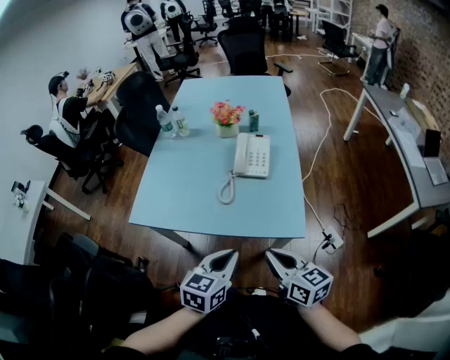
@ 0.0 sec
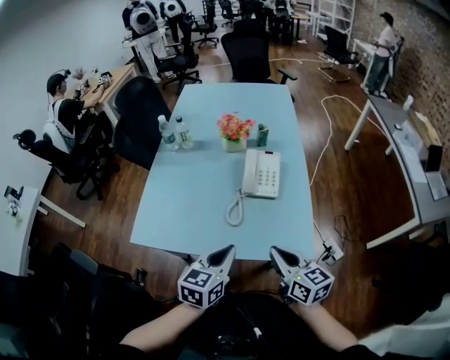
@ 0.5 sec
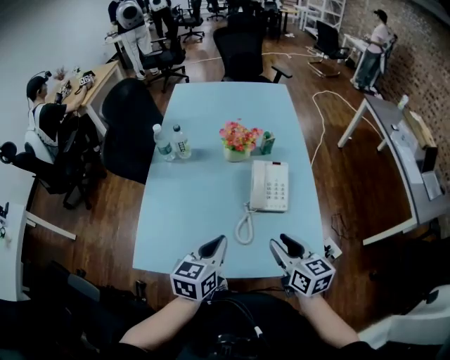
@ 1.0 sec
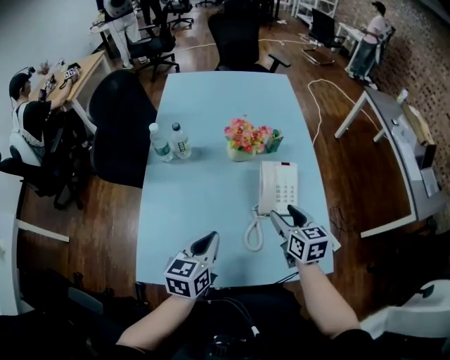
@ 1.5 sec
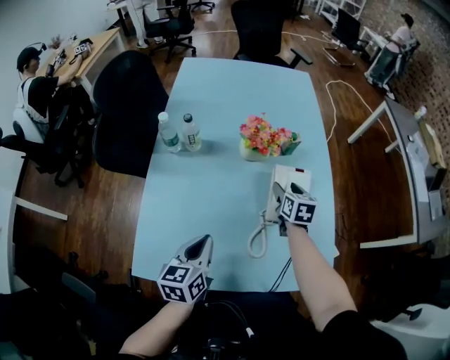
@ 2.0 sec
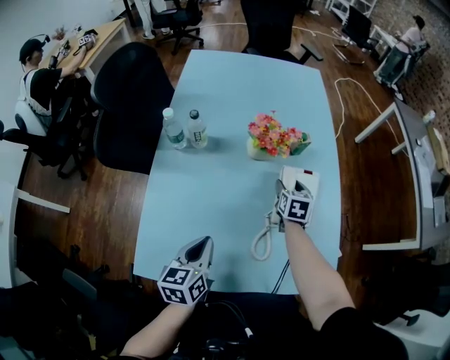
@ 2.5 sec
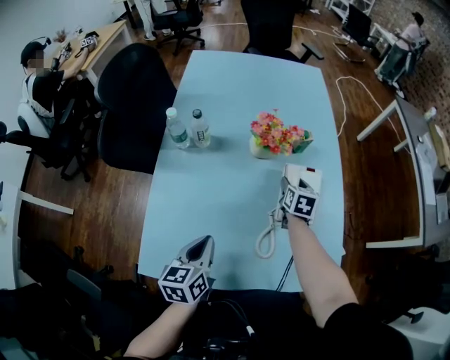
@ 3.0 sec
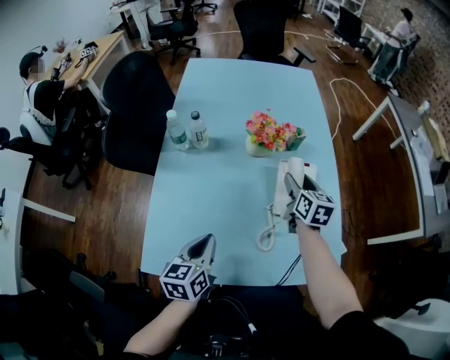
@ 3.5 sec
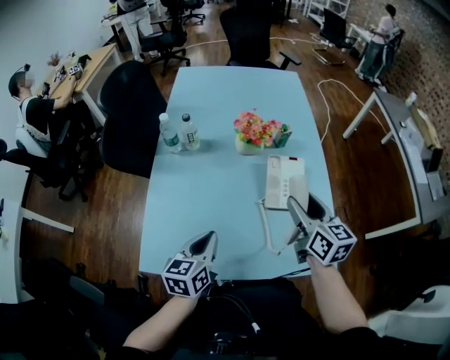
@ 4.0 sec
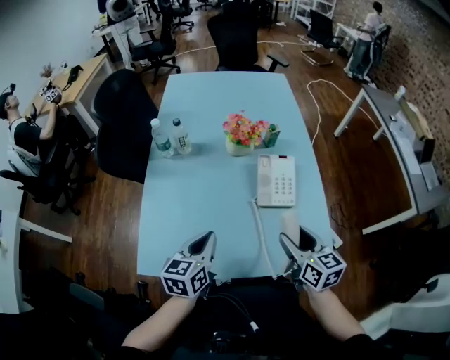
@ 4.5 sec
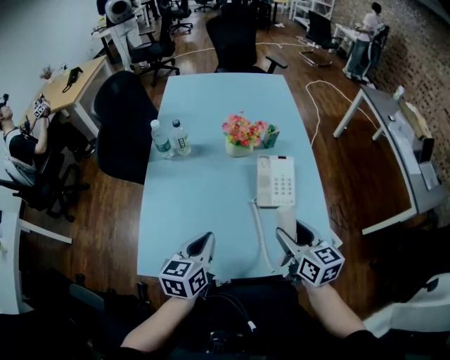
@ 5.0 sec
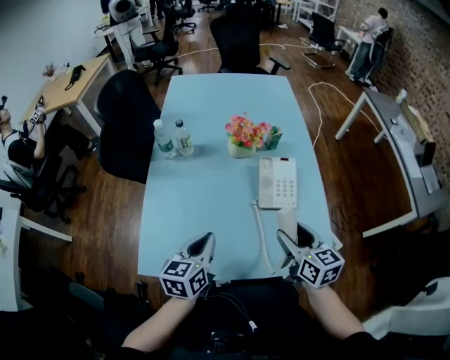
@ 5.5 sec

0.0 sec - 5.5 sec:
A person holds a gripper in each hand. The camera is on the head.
0.0 sec - 2.0 sec: The right gripper travels forward by some 50 cm, swivels approximately 40 degrees, and opens up. The left gripper moves forward and to the left, approximately 40 cm.
2.0 sec - 3.5 sec: The right gripper is displaced upward by roughly 5 cm.
3.5 sec - 5.5 sec: The right gripper shifts some 20 cm backward.

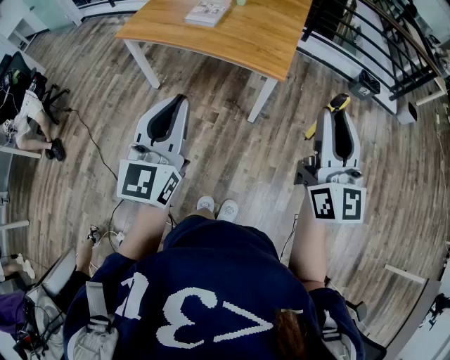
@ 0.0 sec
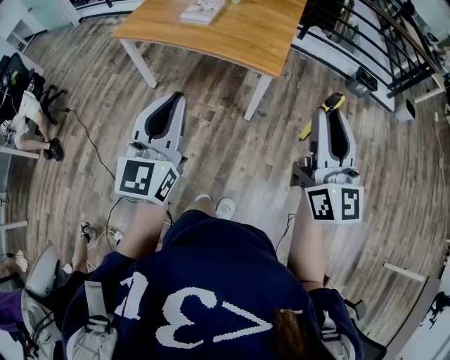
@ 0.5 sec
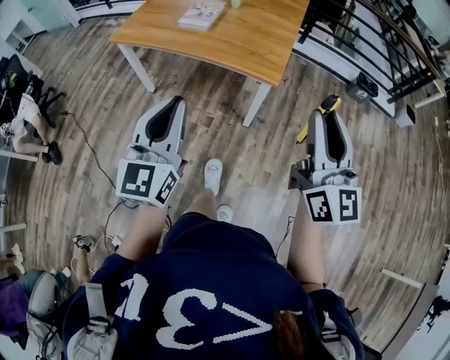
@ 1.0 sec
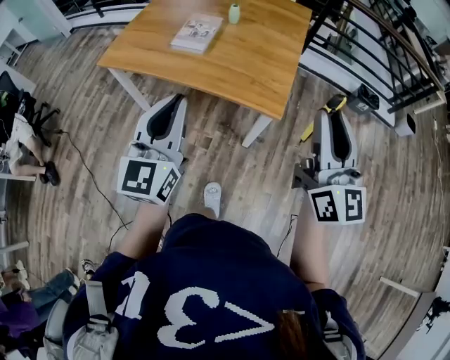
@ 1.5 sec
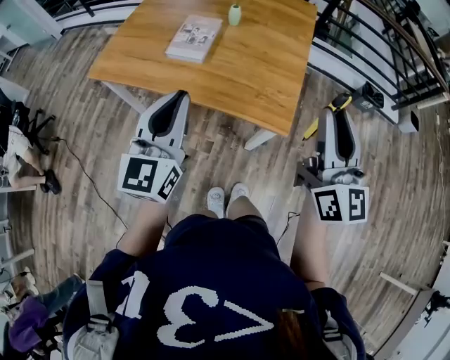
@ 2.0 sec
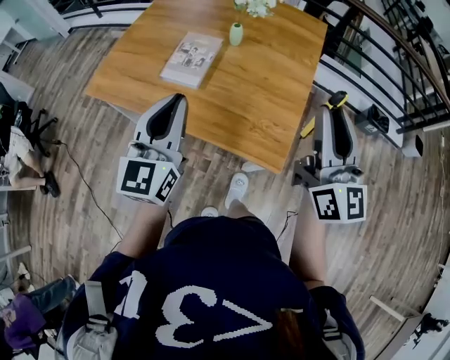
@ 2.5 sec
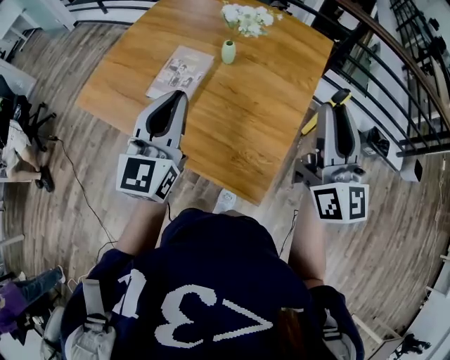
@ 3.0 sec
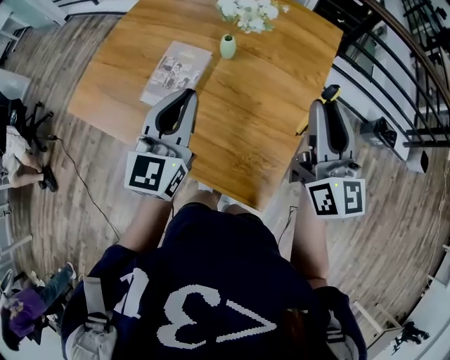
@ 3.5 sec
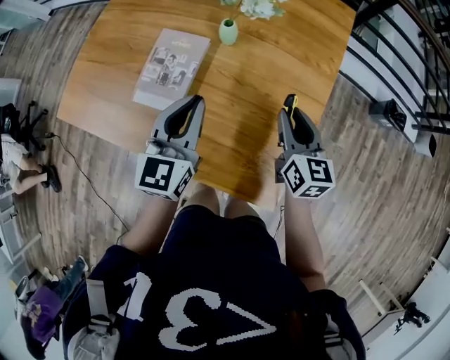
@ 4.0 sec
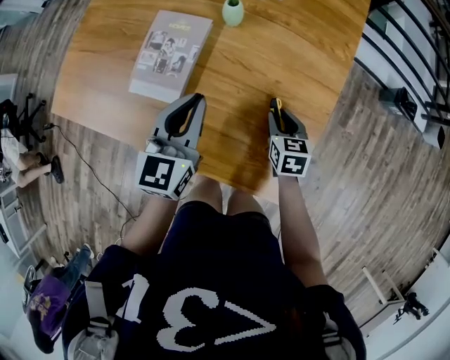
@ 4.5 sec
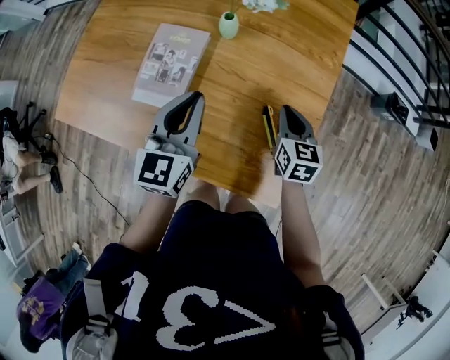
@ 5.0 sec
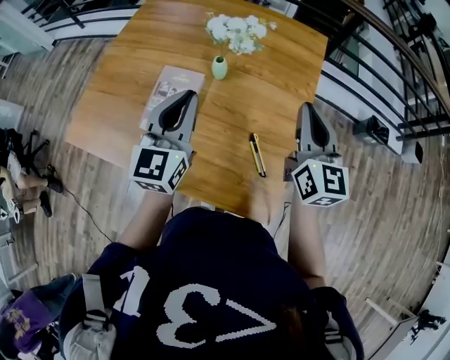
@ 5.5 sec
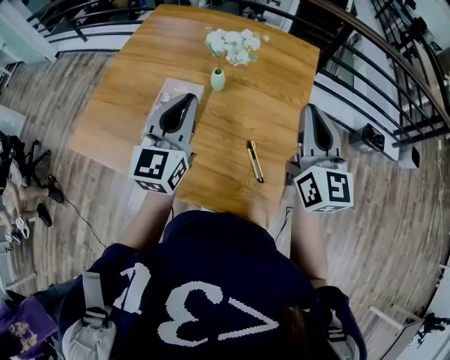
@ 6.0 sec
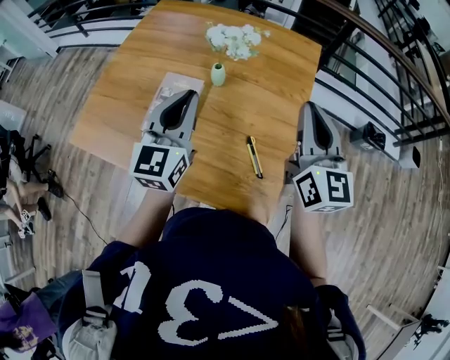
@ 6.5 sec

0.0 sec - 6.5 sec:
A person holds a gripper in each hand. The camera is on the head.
0.0 sec - 2.0 sec: Both grippers move forward, about 30 cm.
2.0 sec - 4.5 sec: The left gripper travels forward and downward by about 40 cm, and turns by about 20 degrees. Meanwhile the right gripper is displaced downward and forward by some 50 cm, and tips its fingers downward by about 60 degrees.
4.5 sec - 6.5 sec: The left gripper is displaced upward by about 15 cm. Meanwhile the right gripper moves upward, roughly 40 cm, angles its fingers upward, by about 50 degrees, and closes its fingers.

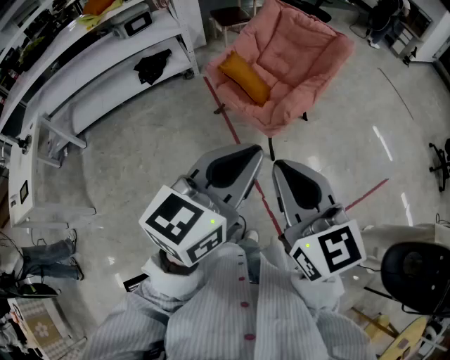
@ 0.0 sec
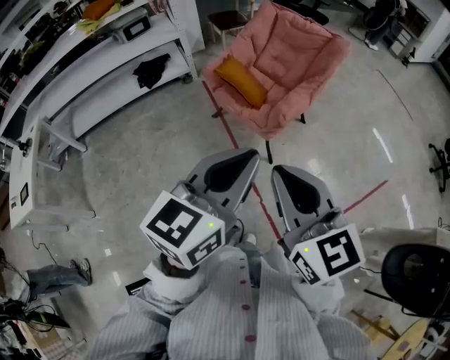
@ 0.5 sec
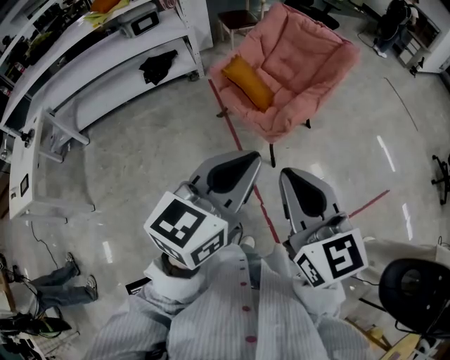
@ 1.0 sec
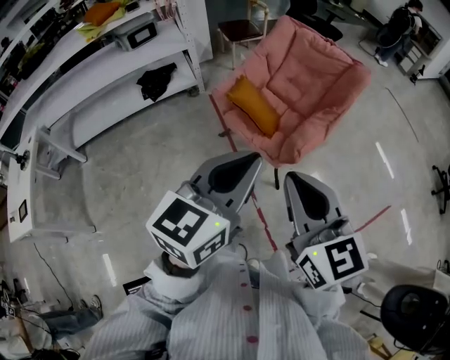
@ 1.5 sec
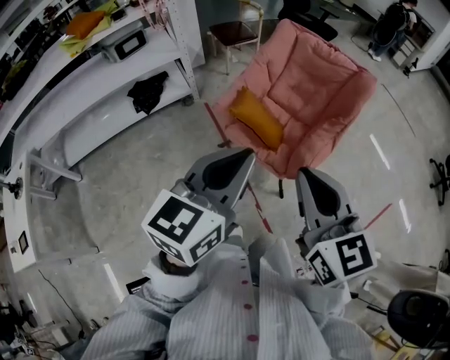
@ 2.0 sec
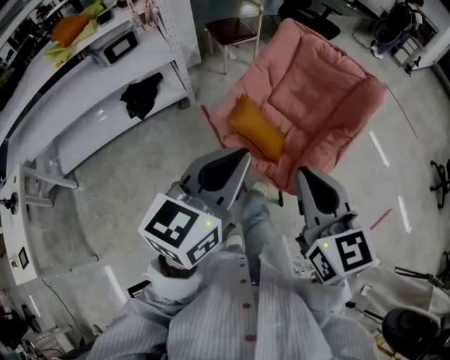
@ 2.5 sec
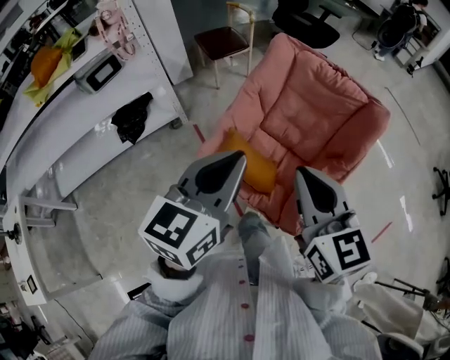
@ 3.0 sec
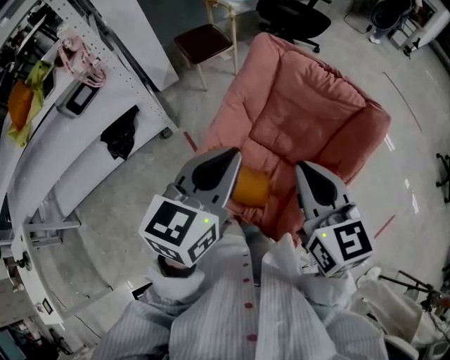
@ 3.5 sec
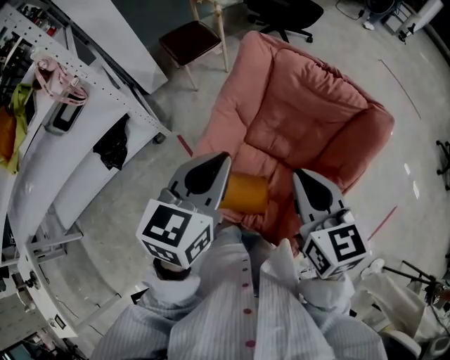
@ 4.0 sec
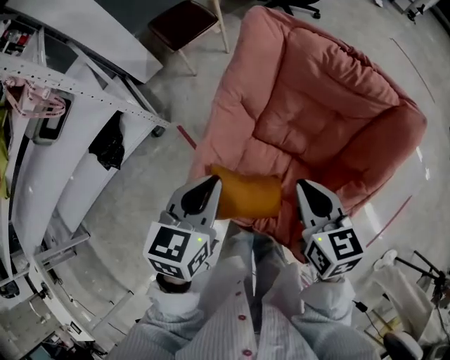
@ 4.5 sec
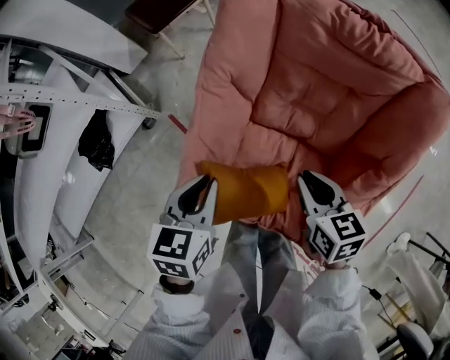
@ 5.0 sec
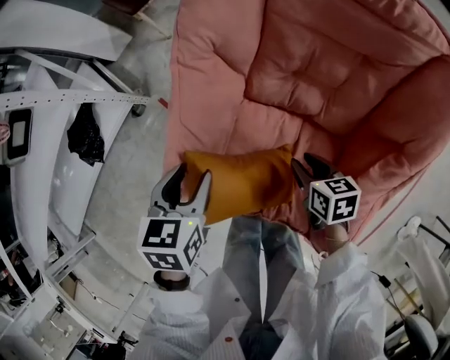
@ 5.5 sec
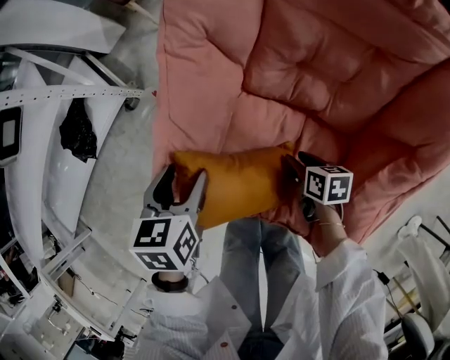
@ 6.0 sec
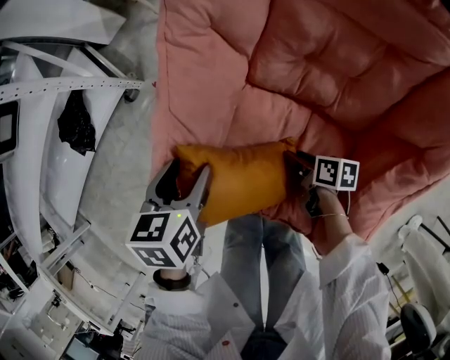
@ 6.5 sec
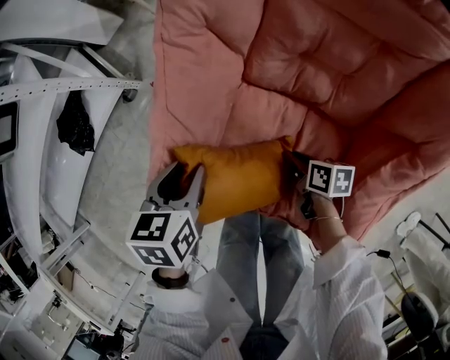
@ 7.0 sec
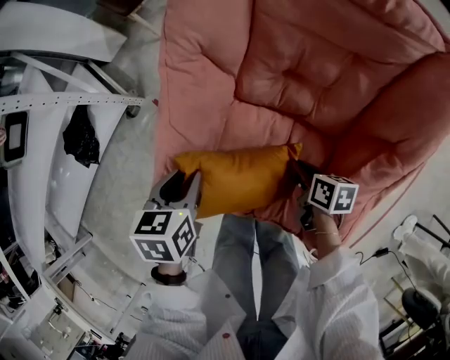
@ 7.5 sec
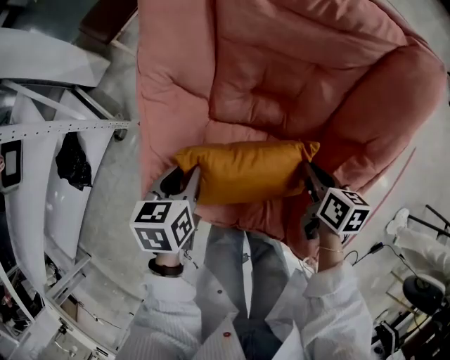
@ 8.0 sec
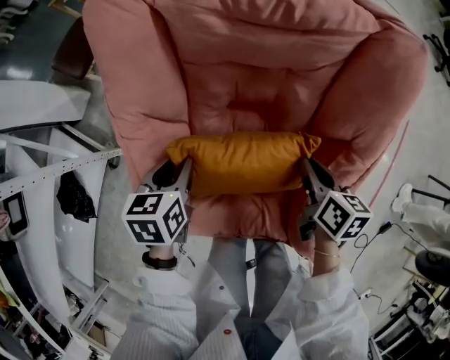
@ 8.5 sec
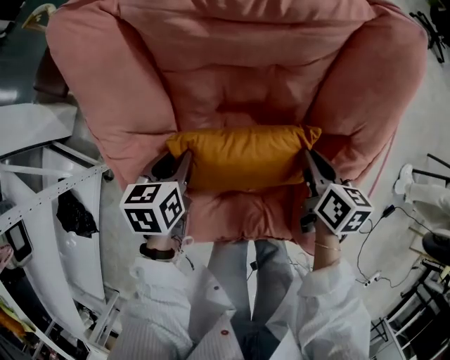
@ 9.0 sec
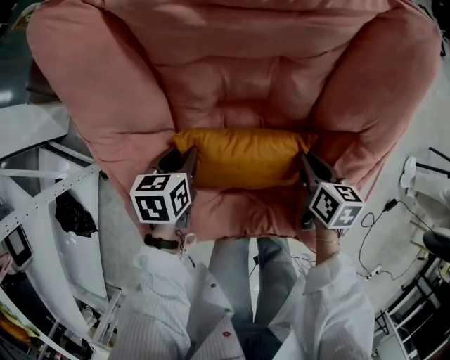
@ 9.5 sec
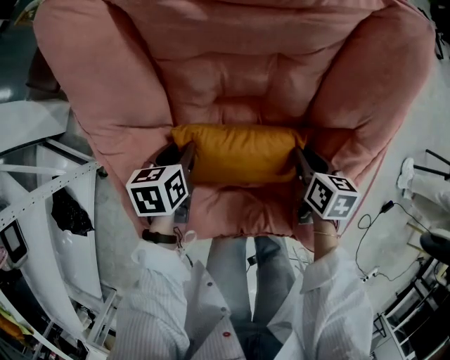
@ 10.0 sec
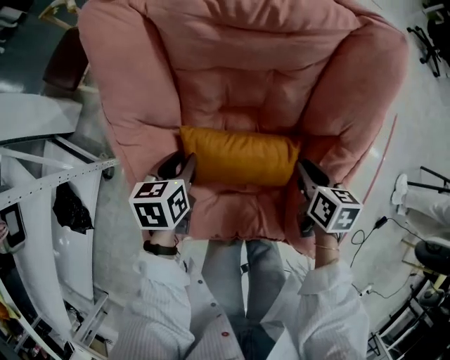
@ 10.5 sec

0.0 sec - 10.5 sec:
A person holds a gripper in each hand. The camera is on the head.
0.0 sec - 2.0 sec: The left gripper is displaced forward and to the left by some 30 cm, while the right gripper shifts roughly 25 cm forward.
2.0 sec - 4.0 sec: The pair of grippers is taken forward, approximately 50 cm.
4.0 sec - 6.5 sec: The two grippers go roughly 50 cm downward. The left gripper tilts its fingers some 30 degrees downward, and opens; the right gripper rolls clockwise, seen from behind, by about 50 degrees, and opens up.
6.5 sec - 8.5 sec: The right gripper goes roughly 20 cm upward, changes its angle by some 40 degrees, and closes, while the left gripper ends up about 20 cm from where it was, changes its angle by roughly 20 degrees, and closes its fingers.
8.5 sec - 10.5 sec: The right gripper travels downward and back again, roughly 10 cm each way. The left gripper travels downward and back again, some 10 cm each way.

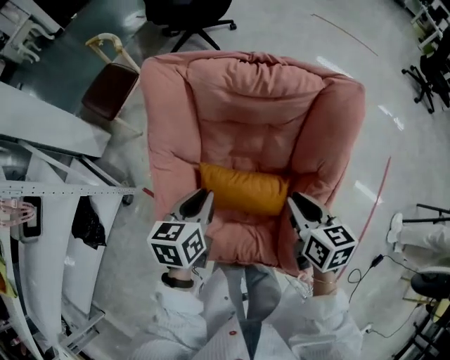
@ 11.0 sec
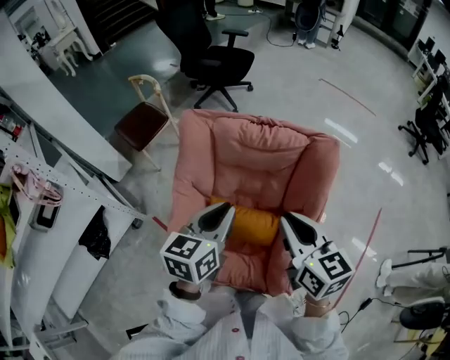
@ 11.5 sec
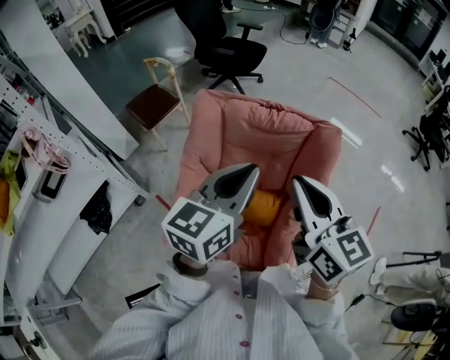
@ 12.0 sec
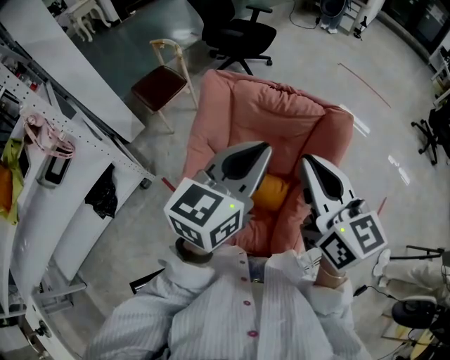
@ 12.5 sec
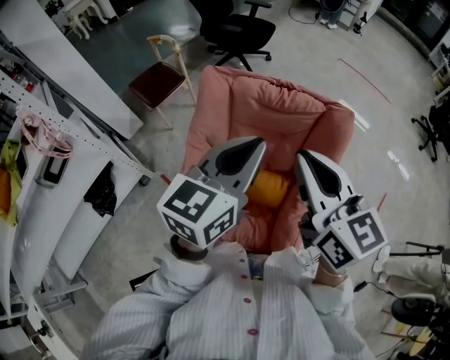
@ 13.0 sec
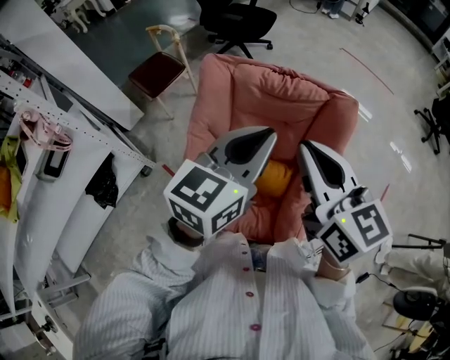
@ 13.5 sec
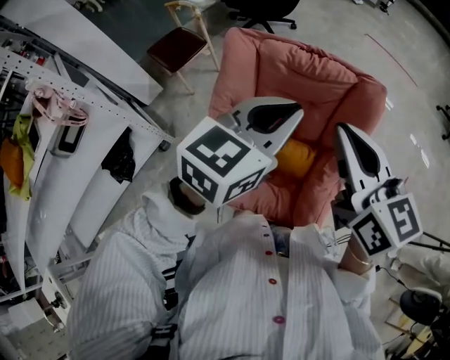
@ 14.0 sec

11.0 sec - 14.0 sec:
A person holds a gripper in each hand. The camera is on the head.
11.0 sec - 12.5 sec: The grippers both shift upward by some 30 cm. The right gripper turns by about 40 degrees; the left gripper angles its fingers upward, by some 30 degrees.
12.5 sec - 14.0 sec: The grippers make only small movements.
